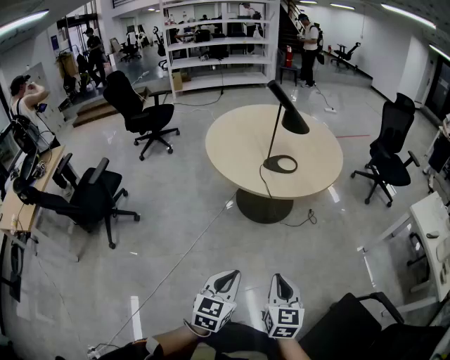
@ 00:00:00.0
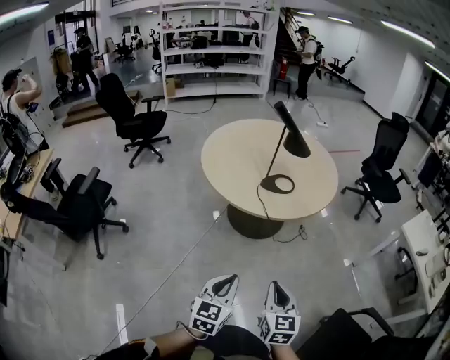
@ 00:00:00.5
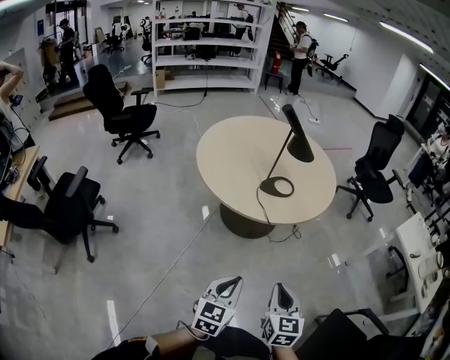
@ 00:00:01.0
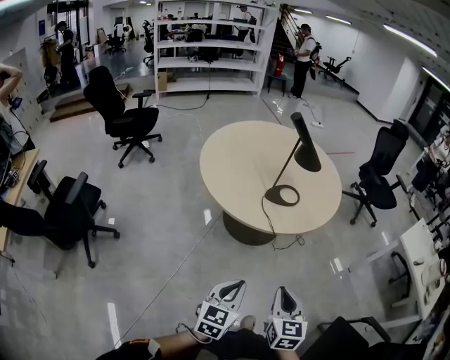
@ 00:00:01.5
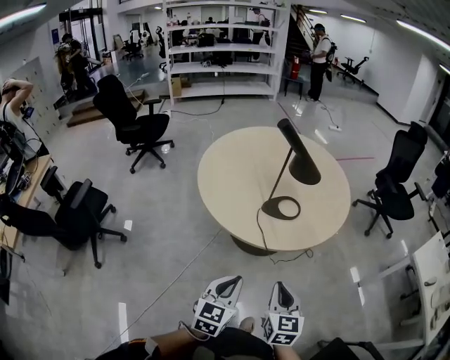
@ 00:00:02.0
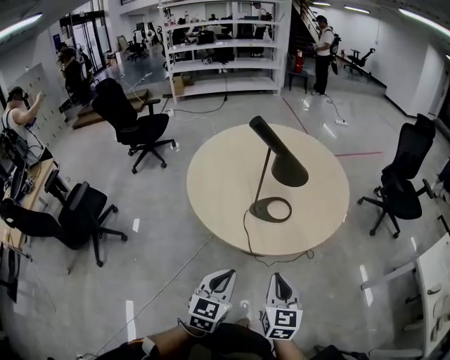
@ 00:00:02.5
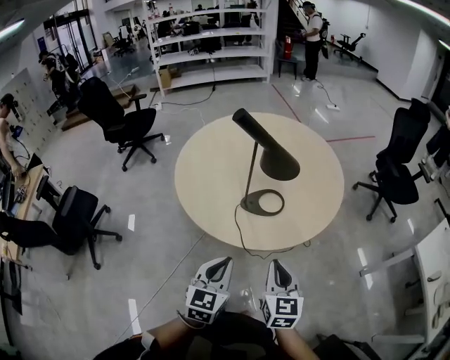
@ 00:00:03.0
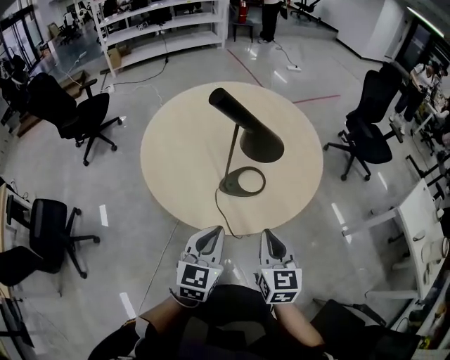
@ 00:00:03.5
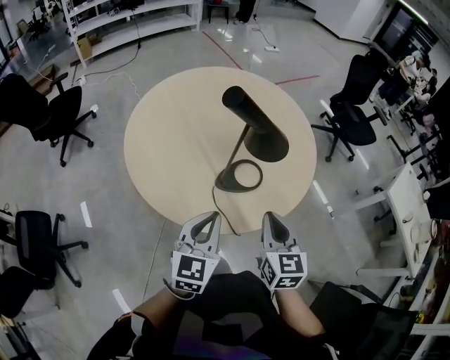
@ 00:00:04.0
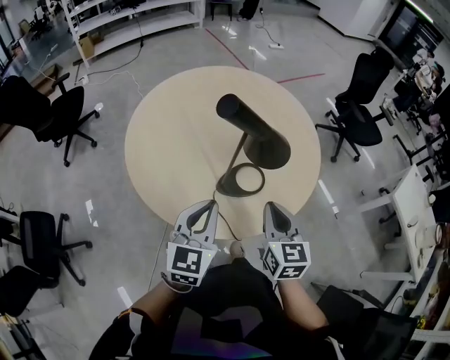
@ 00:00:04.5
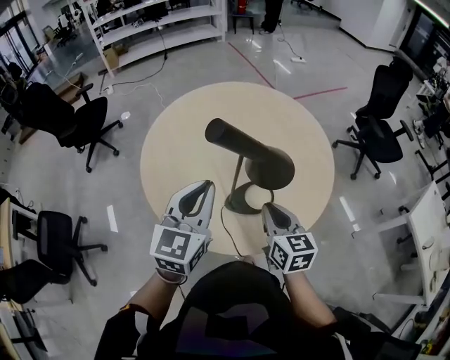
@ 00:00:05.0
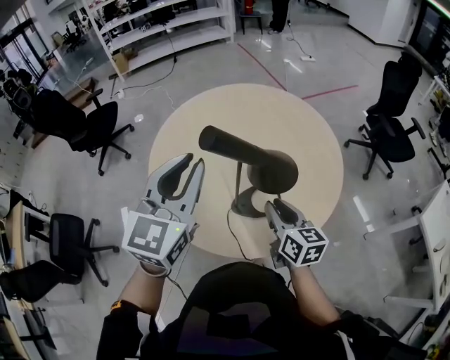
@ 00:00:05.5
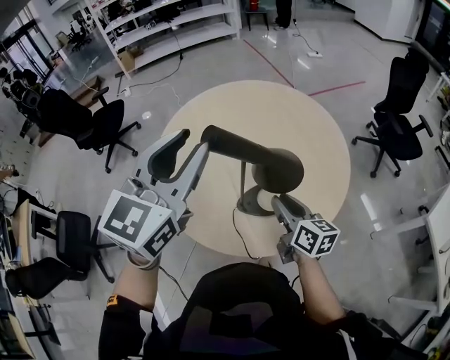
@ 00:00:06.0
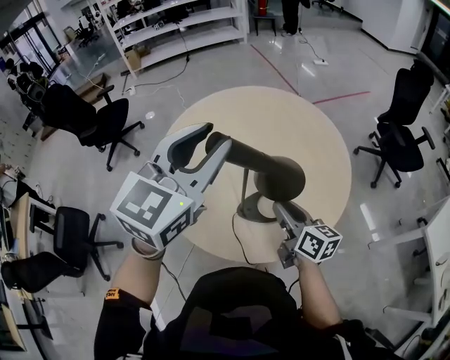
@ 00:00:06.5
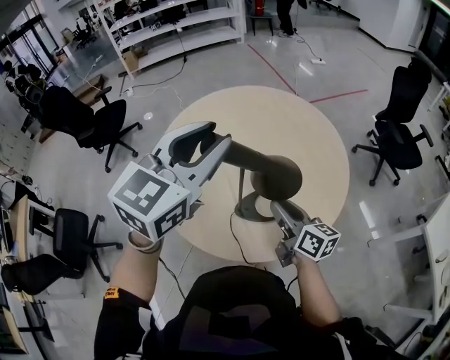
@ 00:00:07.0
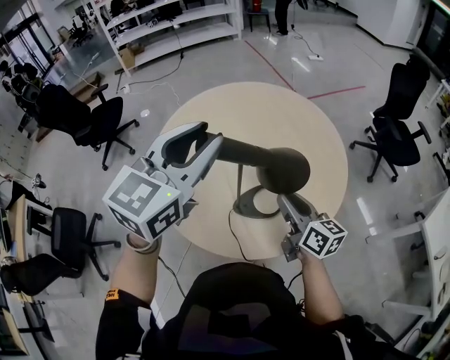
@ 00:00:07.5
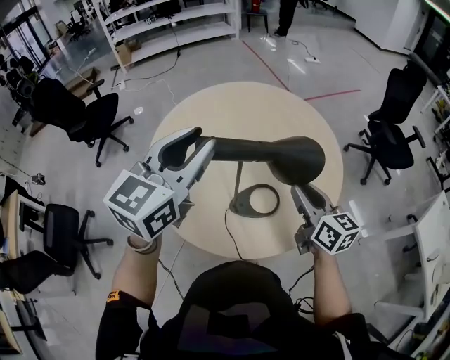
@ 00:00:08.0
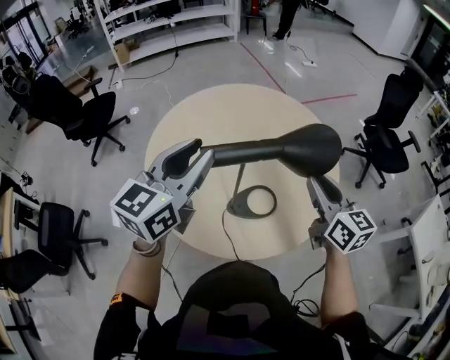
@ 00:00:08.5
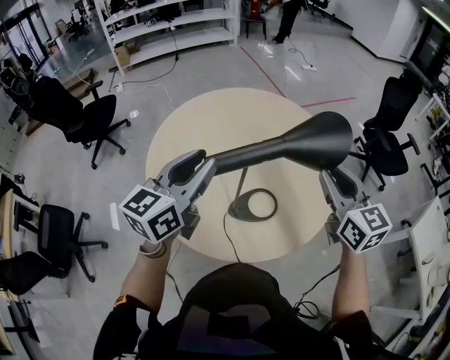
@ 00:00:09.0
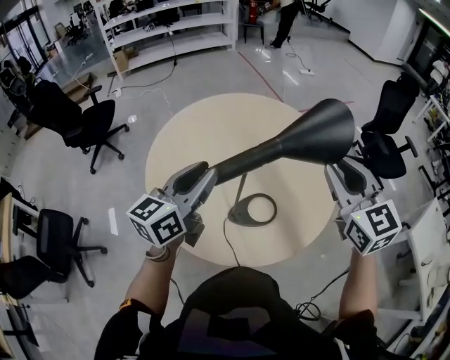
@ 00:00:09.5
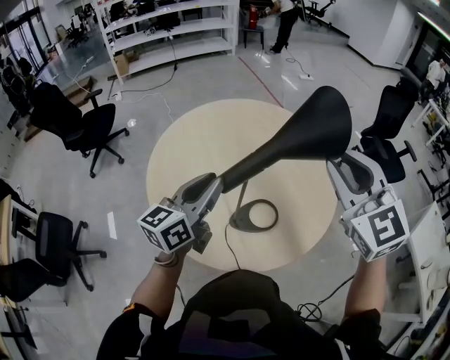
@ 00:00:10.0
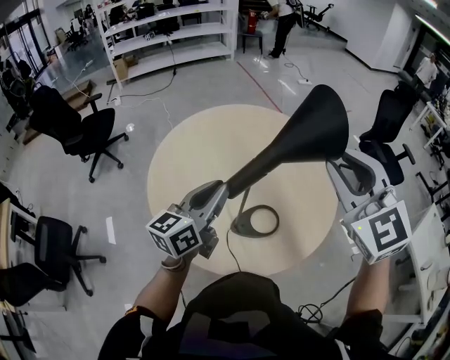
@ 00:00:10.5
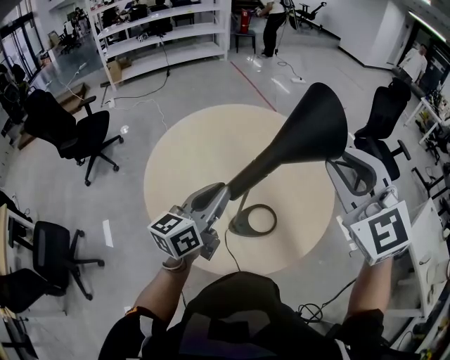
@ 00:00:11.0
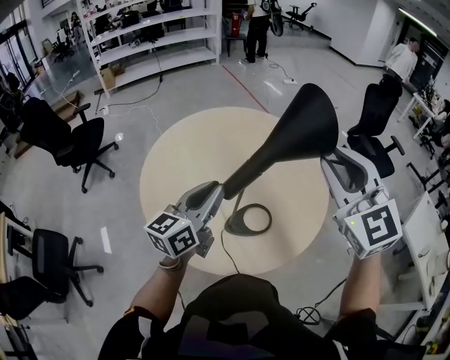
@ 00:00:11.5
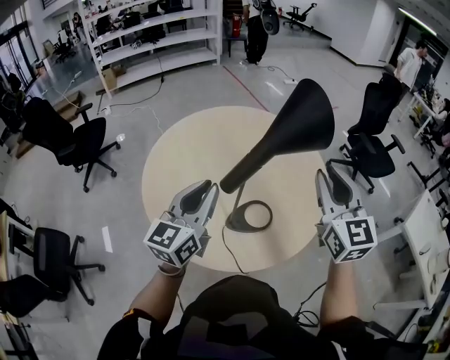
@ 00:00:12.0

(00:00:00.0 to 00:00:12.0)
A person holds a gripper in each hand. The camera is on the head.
00:00:00.0 - 00:00:02.0: Both grippers move forward, roughly 30 cm.
00:00:02.0 - 00:00:04.0: Both grippers travel together forward, about 30 cm.
00:00:04.0 - 00:00:06.0: The right gripper travels forward by about 15 cm, turns by about 40 degrees, and opens its fingers. Meanwhile the left gripper heads upward and forward, covering some 30 cm, and opens up.
00:00:06.0 - 00:00:08.0: The right gripper travels upward by some 5 cm.
00:00:08.0 - 00:00:10.0: The left gripper travels downward by approximately 10 cm, and turns by some 30 degrees. Meanwhile the right gripper is displaced upward by about 20 cm, and rolls counterclockwise, seen from behind, by about 50 degrees.
00:00:10.0 - 00:00:12.0: The right gripper changes place by some 5 cm, and rotates about 30 degrees.

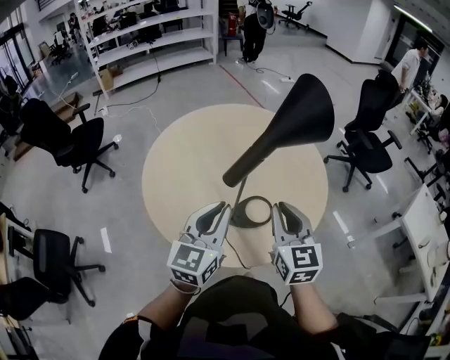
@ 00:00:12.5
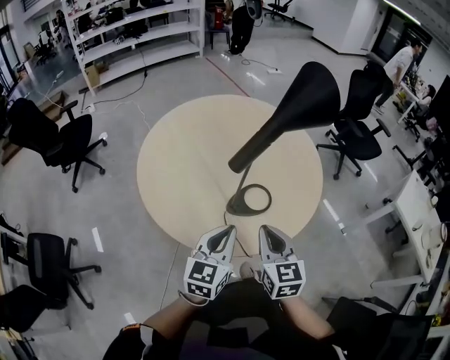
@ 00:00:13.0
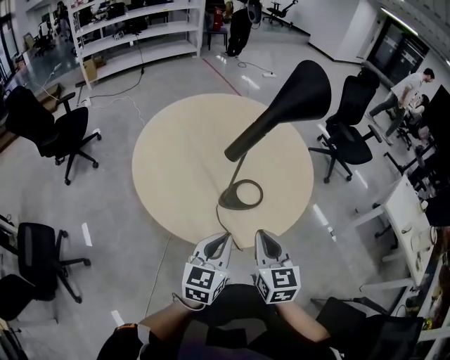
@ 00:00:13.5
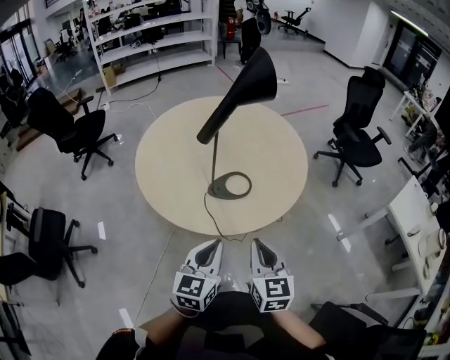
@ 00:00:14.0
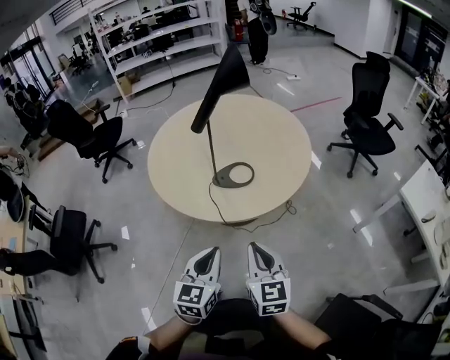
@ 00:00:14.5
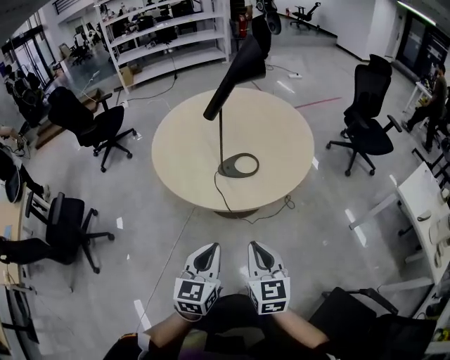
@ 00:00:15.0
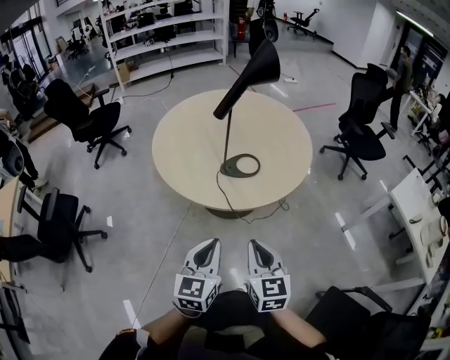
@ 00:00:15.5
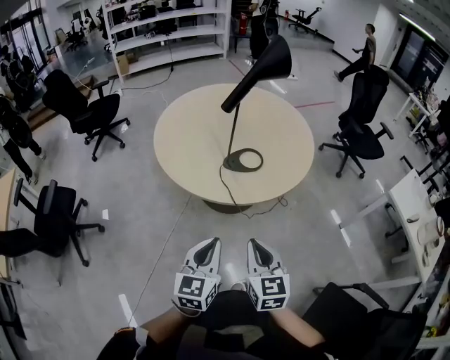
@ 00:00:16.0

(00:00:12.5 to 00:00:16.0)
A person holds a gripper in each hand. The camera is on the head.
00:00:12.5 - 00:00:14.5: The grippers both shift backward and to the right by approximately 40 cm.
00:00:14.5 - 00:00:16.0: Both grippers travel together to the left and backward, approximately 15 cm.

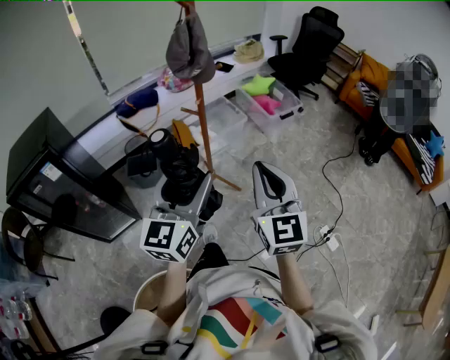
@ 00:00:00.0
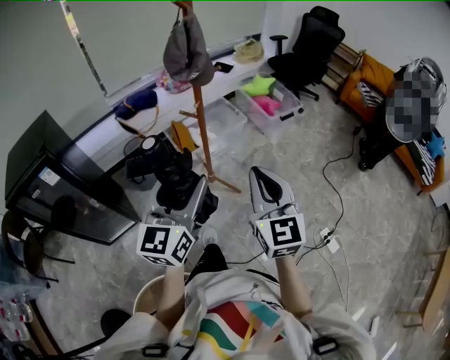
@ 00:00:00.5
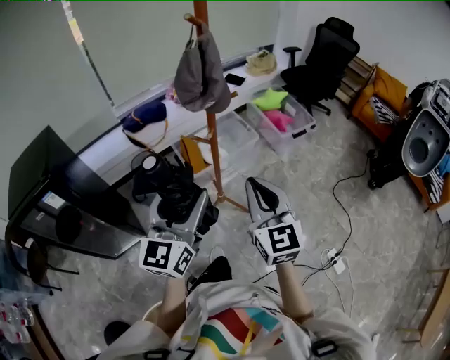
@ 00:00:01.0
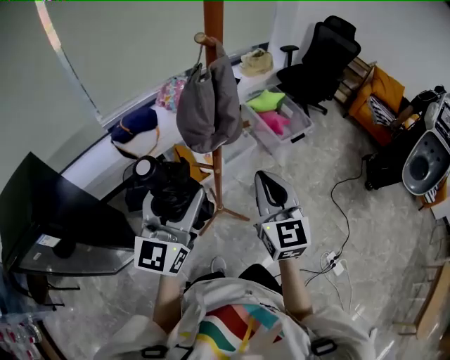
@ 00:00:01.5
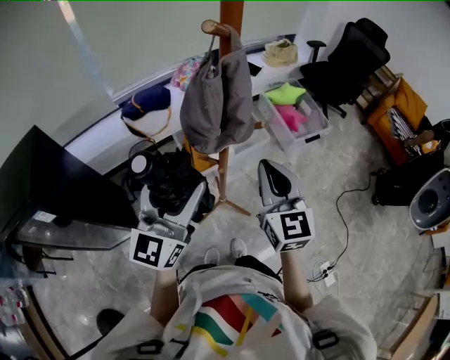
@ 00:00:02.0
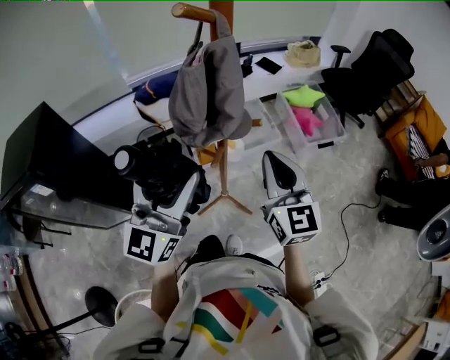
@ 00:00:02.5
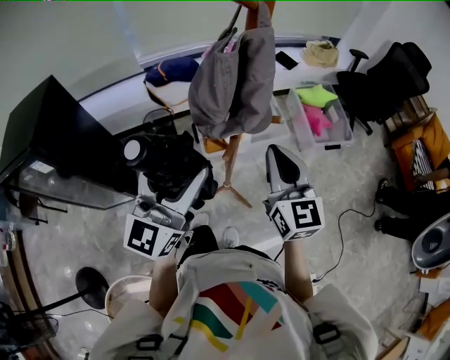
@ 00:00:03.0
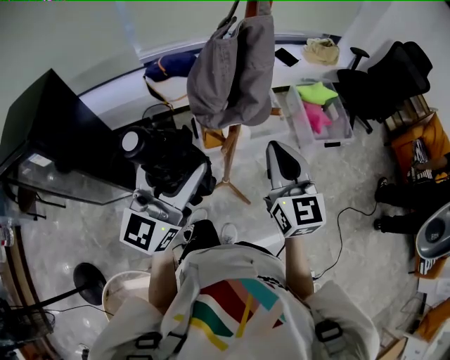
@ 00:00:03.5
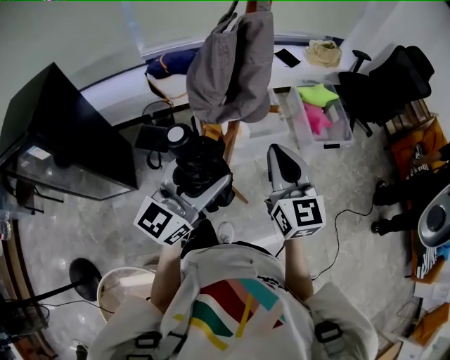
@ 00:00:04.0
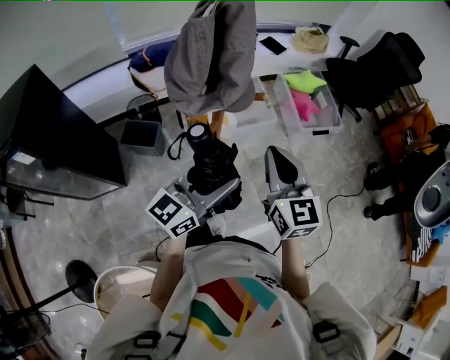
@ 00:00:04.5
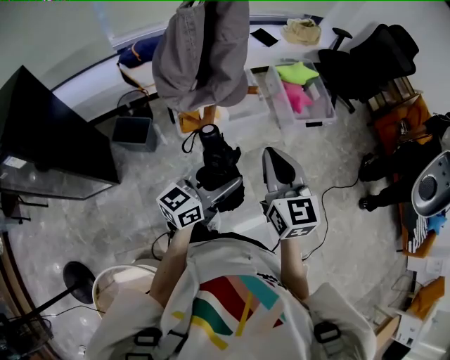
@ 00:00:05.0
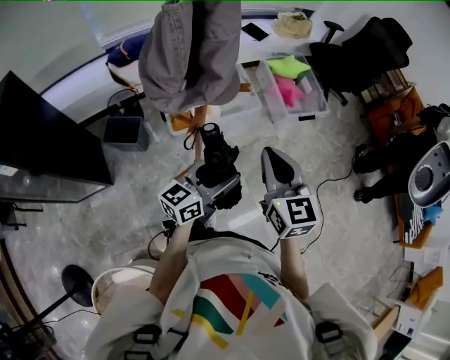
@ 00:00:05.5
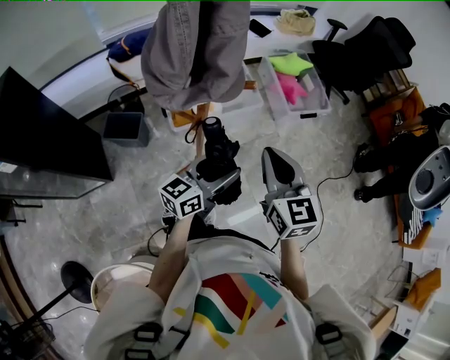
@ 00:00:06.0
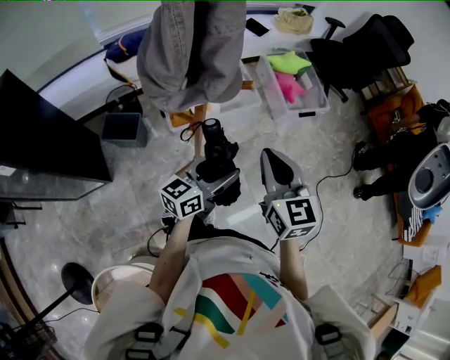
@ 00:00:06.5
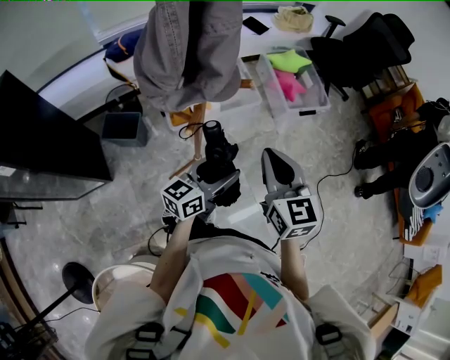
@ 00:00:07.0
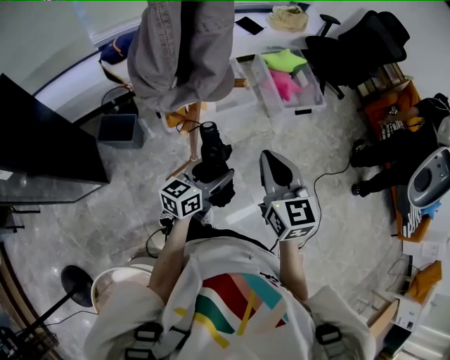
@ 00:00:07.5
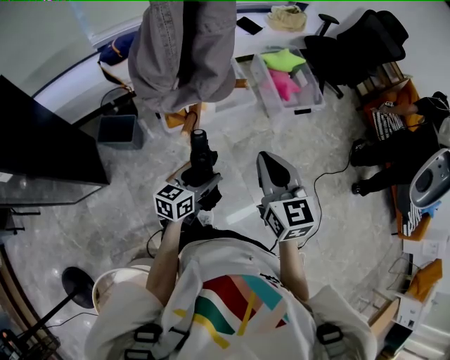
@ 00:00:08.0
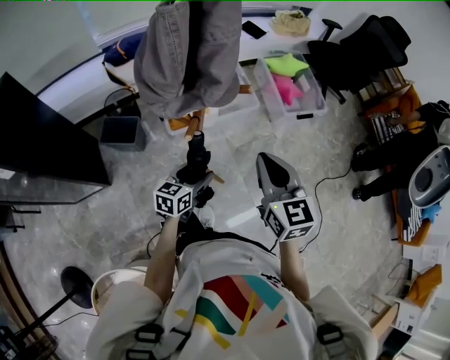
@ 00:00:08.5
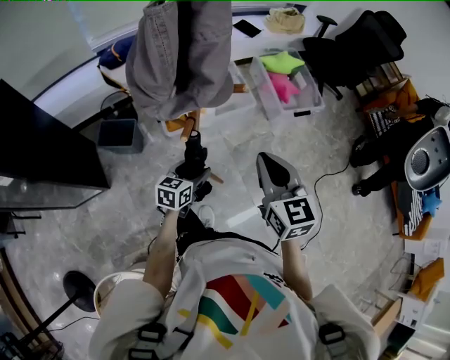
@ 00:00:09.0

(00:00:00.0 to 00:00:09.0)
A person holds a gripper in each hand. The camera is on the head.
00:00:00.0 - 00:00:02.0: Both grippers travel together forward, about 30 cm.
00:00:02.0 - 00:00:04.5: The left gripper moves to the right and downward, about 20 cm, and turns by approximately 20 degrees, while the right gripper heads downward, covering approximately 5 cm.
00:00:04.5 - 00:00:07.0: The left gripper heads downward and to the right, covering roughly 15 cm, and swivels approximately 20 degrees. The right gripper ends up some 5 cm from where it was.
00:00:07.0 - 00:00:09.0: The left gripper heads downward and to the left, covering approximately 15 cm, and changes its angle by about 30 degrees.

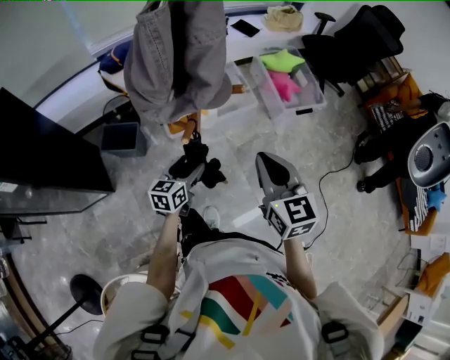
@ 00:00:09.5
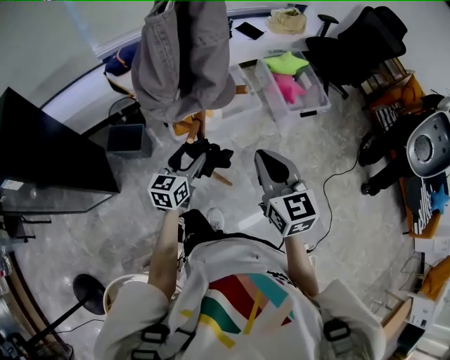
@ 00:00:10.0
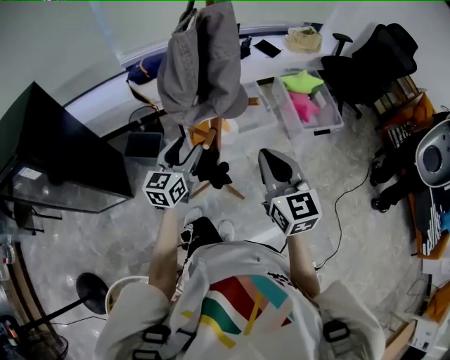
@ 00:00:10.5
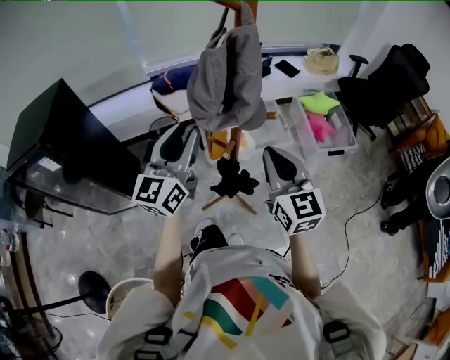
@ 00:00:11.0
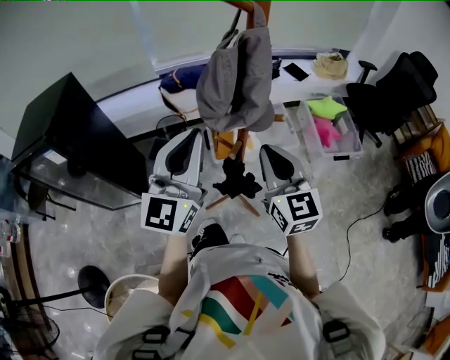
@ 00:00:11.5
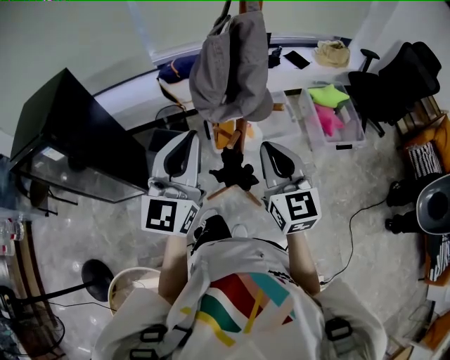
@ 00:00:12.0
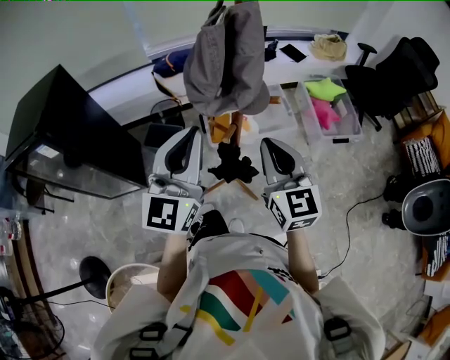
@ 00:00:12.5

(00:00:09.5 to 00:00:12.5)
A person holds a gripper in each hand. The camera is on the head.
00:00:09.5 - 00:00:11.0: The right gripper goes roughly 10 cm upward and to the left; the left gripper is displaced upward by approximately 35 cm, tilts its fingers about 30 degrees upward, and closes.
00:00:11.0 - 00:00:12.5: The left gripper is displaced backward by approximately 5 cm, and closes up.
